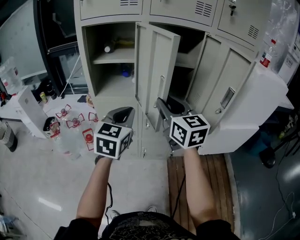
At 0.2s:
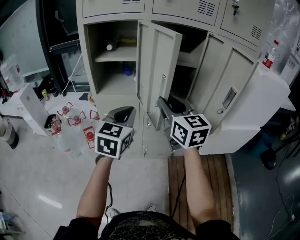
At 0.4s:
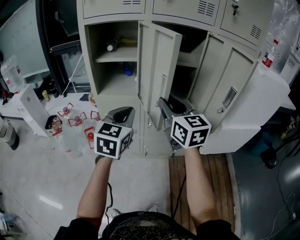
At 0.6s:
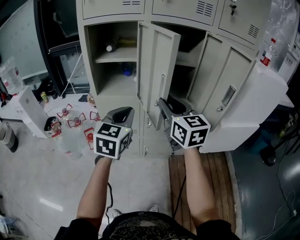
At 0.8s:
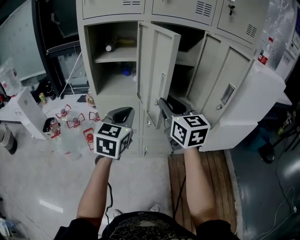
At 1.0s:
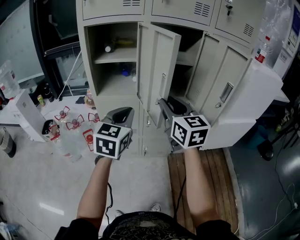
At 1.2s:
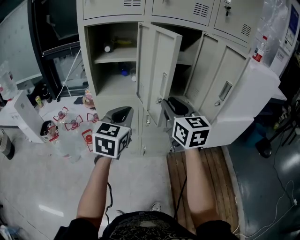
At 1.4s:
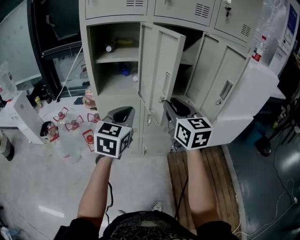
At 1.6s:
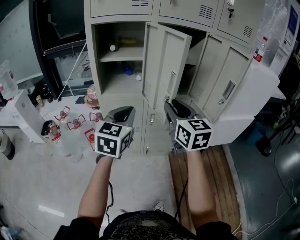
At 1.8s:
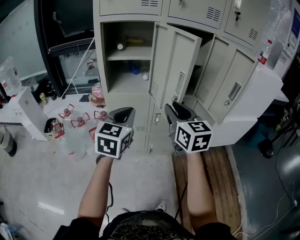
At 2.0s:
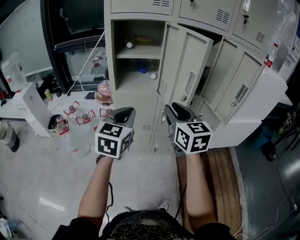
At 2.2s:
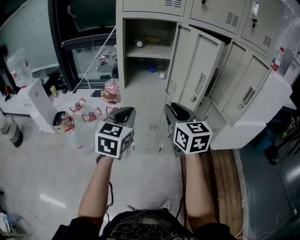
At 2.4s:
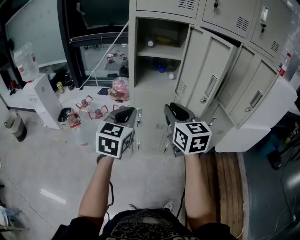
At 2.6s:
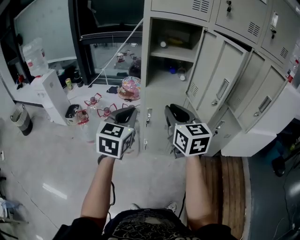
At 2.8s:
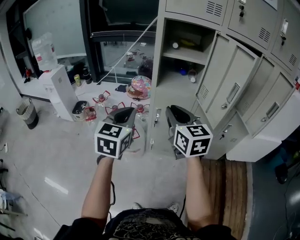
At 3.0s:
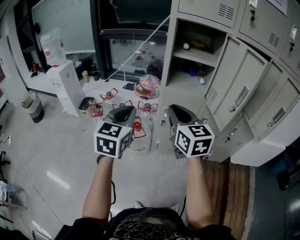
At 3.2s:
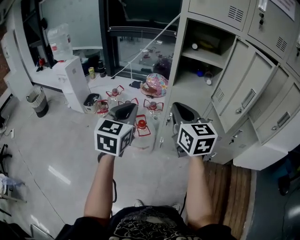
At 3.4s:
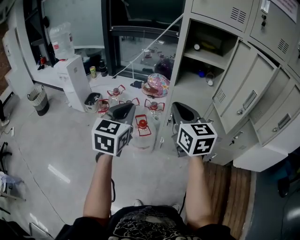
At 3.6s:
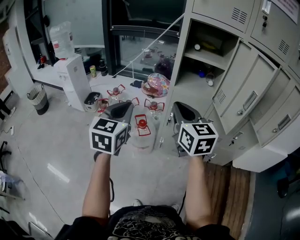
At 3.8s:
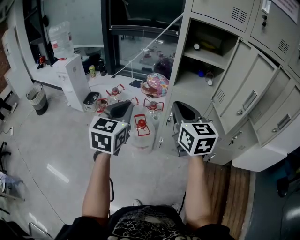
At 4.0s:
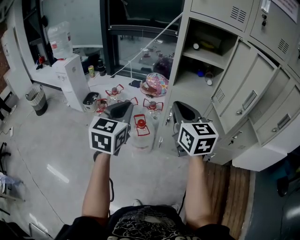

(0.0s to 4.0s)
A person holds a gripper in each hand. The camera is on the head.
0.0s - 1.4s: The grippers stay close to where they were, moving slightly.
1.4s - 2.6s: Both grippers travel together to the left, approximately 20 cm.
2.6s - 4.0s: Both grippers travel together to the left, about 10 cm.

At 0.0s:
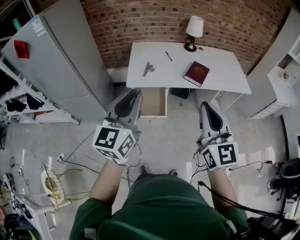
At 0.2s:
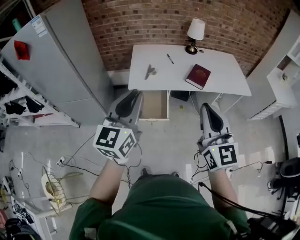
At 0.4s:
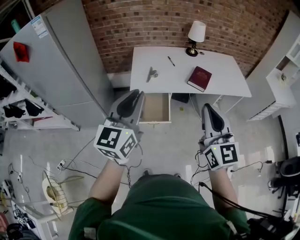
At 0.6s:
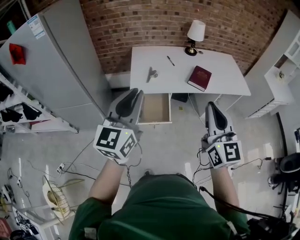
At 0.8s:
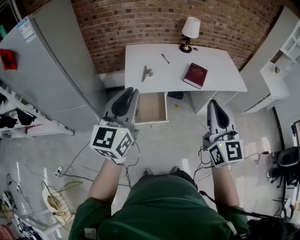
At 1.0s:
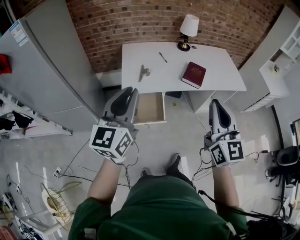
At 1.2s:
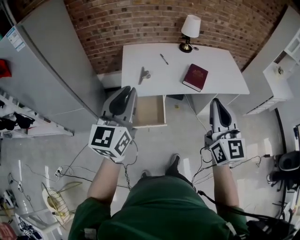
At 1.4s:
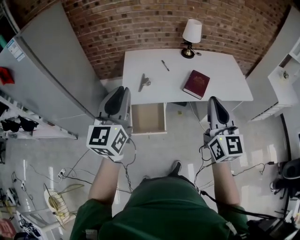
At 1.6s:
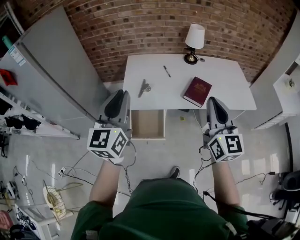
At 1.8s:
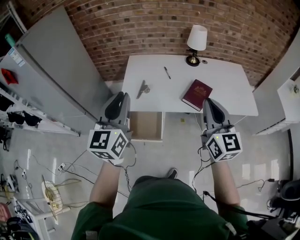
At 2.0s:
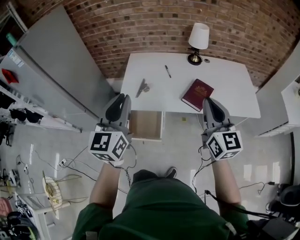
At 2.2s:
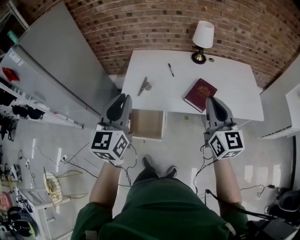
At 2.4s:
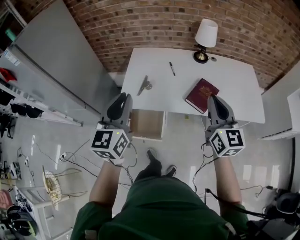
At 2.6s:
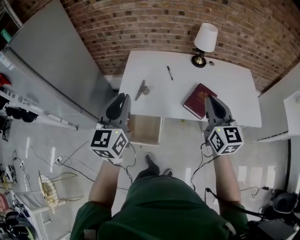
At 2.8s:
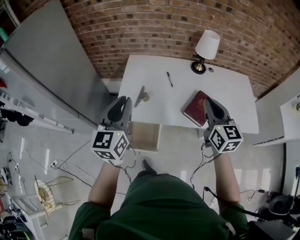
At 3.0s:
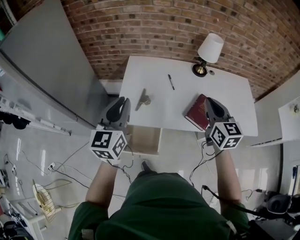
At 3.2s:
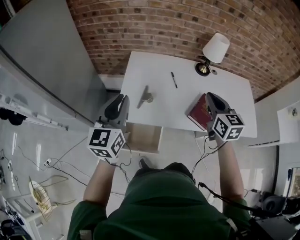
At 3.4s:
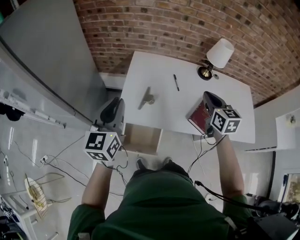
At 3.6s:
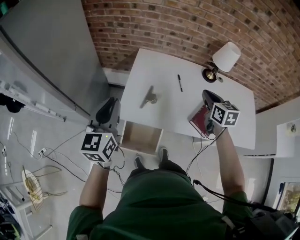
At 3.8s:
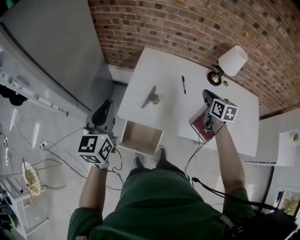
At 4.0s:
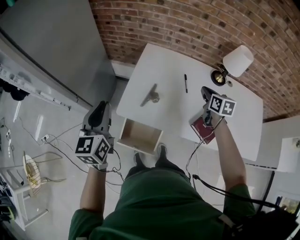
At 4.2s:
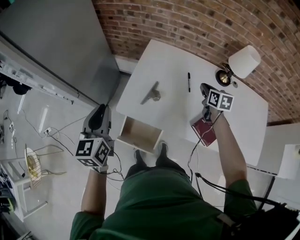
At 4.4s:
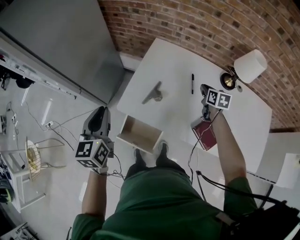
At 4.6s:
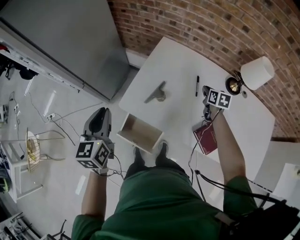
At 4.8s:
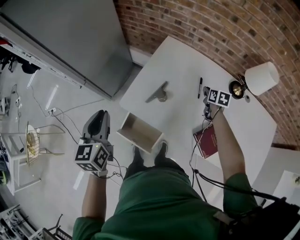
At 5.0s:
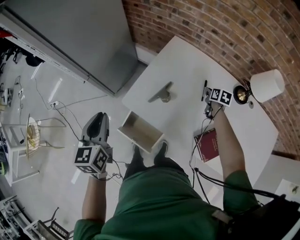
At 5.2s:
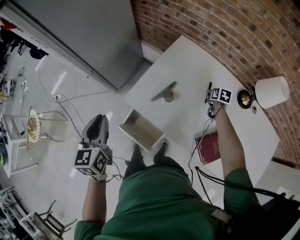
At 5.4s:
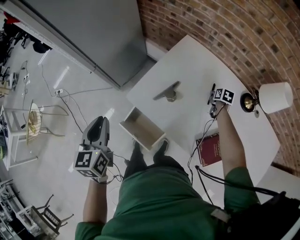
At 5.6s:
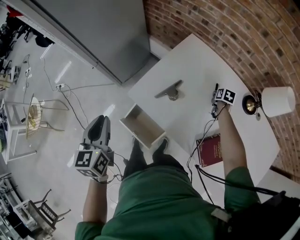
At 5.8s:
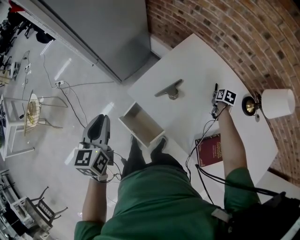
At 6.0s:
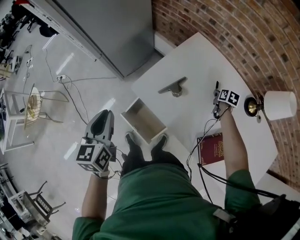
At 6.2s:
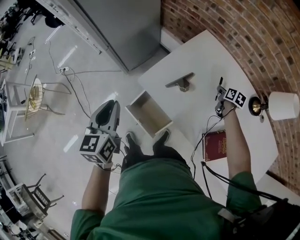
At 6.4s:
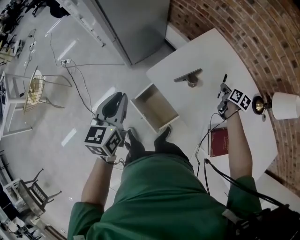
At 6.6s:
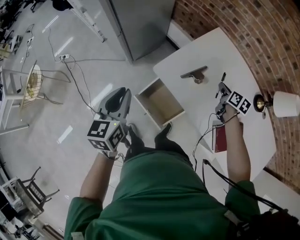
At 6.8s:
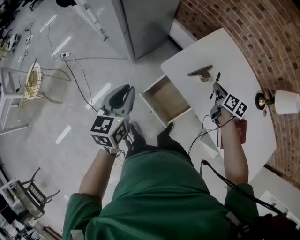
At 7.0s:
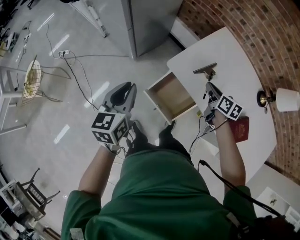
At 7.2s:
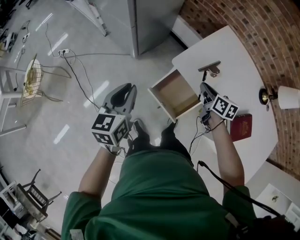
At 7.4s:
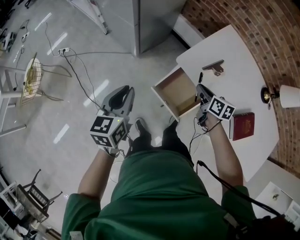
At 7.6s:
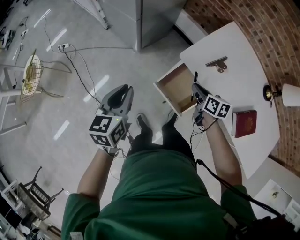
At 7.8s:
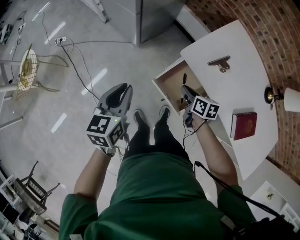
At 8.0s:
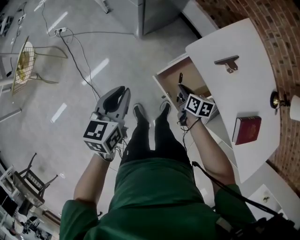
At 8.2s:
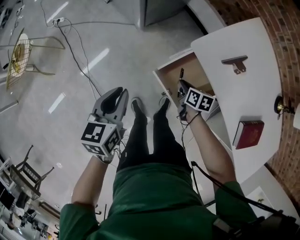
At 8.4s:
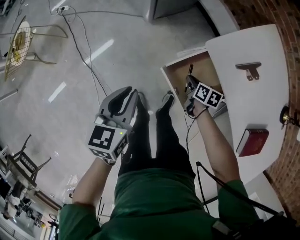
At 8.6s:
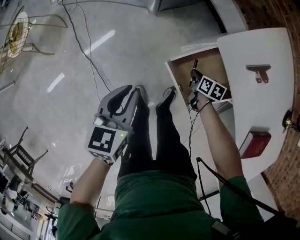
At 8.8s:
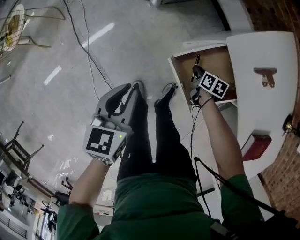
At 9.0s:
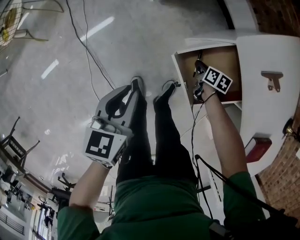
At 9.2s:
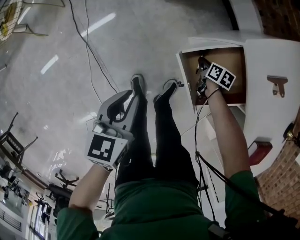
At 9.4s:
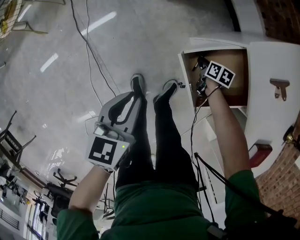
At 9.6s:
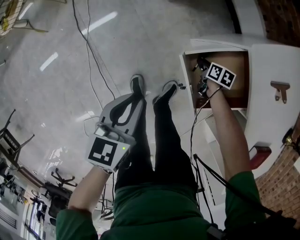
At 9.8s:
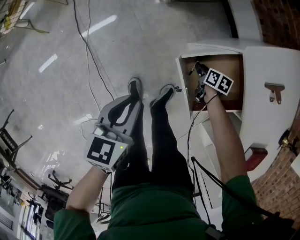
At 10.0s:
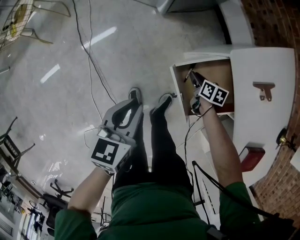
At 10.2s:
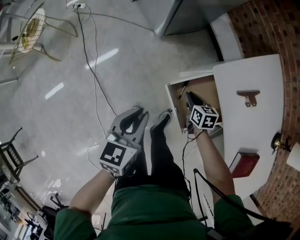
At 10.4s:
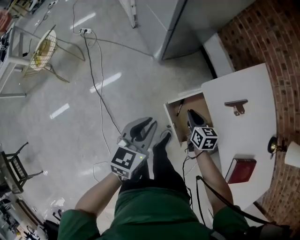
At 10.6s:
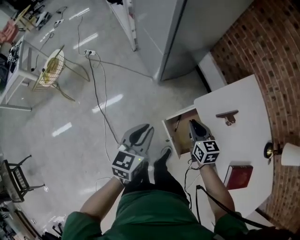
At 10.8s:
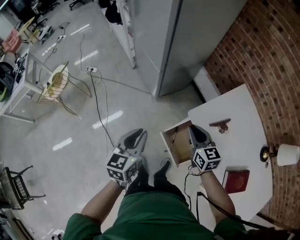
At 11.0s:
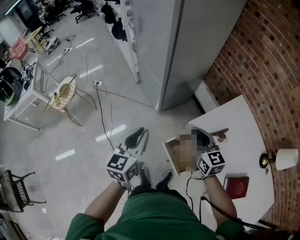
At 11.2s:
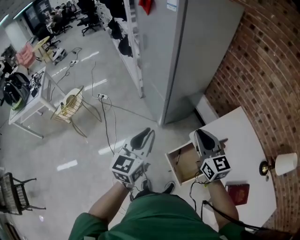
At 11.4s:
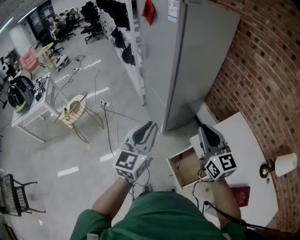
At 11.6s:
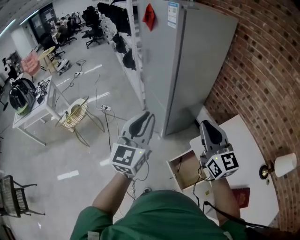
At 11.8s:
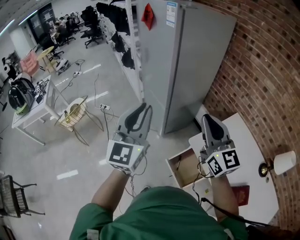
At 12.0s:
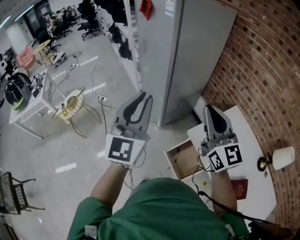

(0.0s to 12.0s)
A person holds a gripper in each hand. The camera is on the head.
0.0s - 1.6s: Both grippers travel together forward, roughly 20 cm.
1.6s - 3.0s: The left gripper is displaced forward and downward by approximately 20 cm; the right gripper moves forward, some 25 cm, and changes its angle by about 20 degrees.
3.0s - 4.4s: The right gripper travels forward and downward by roughly 35 cm, and rotates about 30 degrees. Meanwhile the left gripper goes about 15 cm downward and to the left, and turns by some 30 degrees.
4.4s - 6.0s: The right gripper heads downward and forward, covering some 15 cm; the left gripper shifts approximately 5 cm backward, and rotates about 20 degrees.
6.0s - 7.6s: The left gripper travels to the left by about 20 cm, while the right gripper moves to the left, approximately 50 cm, and rotates approximately 20 degrees.
7.6s - 9.0s: The left gripper travels downward by roughly 20 cm, while the right gripper heads downward, covering approximately 35 cm, and swivels about 20 degrees.
9.0s - 10.4s: The right gripper moves upward, approximately 25 cm, and swivels about 30 degrees, while the left gripper is displaced upward by approximately 15 cm.
10.4s - 12.0s: Both grippers travel together upward, roughly 50 cm. The right gripper points its fingers approximately 50 degrees further upward. The left gripper tips its fingers upward by roughly 40 degrees.

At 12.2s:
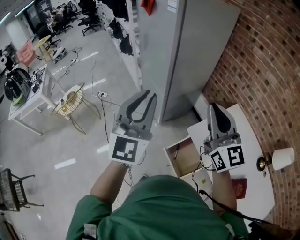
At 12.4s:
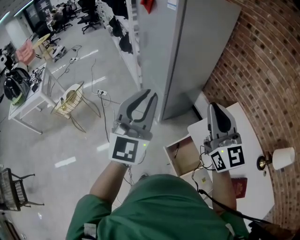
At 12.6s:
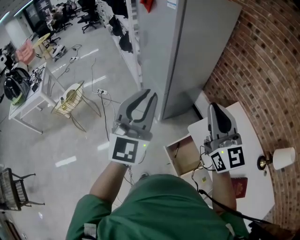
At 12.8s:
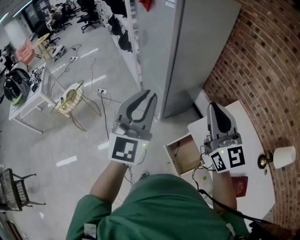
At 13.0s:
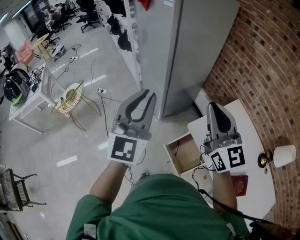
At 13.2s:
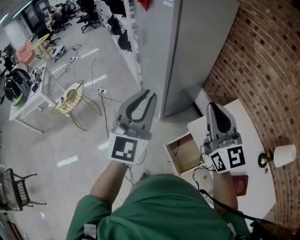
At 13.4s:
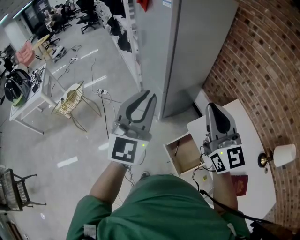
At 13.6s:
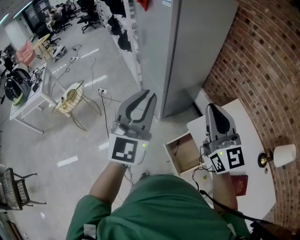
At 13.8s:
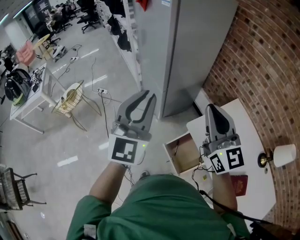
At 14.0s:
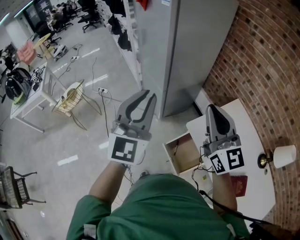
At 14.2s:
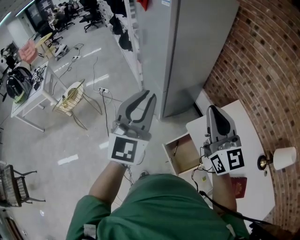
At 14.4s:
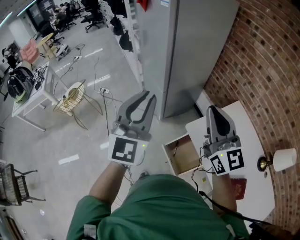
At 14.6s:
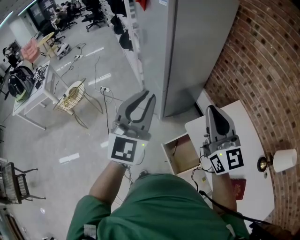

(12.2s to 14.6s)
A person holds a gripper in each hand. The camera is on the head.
12.2s - 14.6s: The grippers move only a little.

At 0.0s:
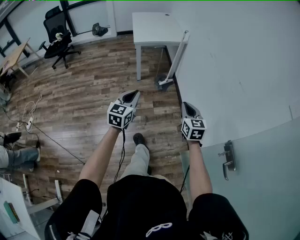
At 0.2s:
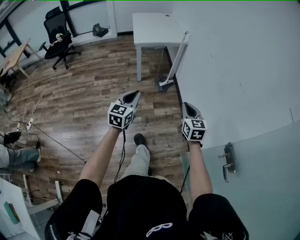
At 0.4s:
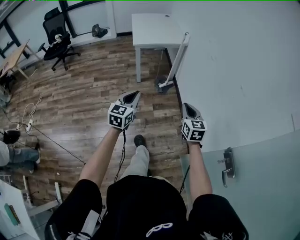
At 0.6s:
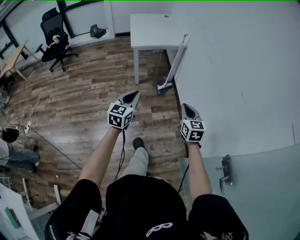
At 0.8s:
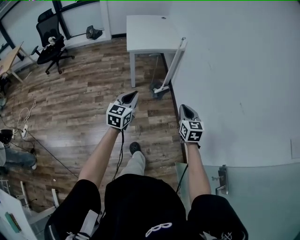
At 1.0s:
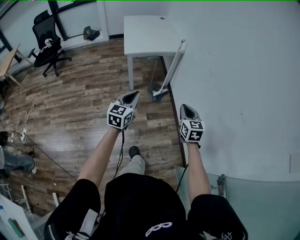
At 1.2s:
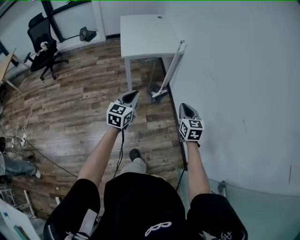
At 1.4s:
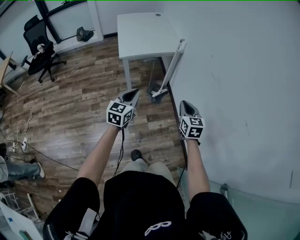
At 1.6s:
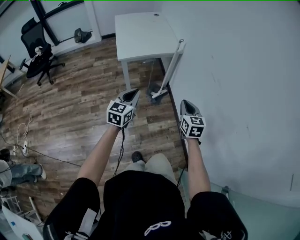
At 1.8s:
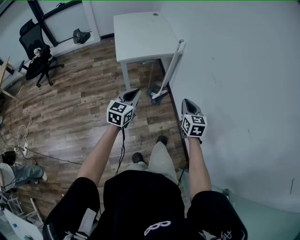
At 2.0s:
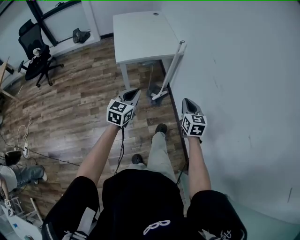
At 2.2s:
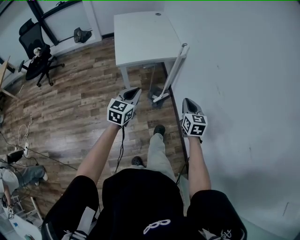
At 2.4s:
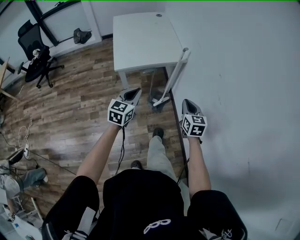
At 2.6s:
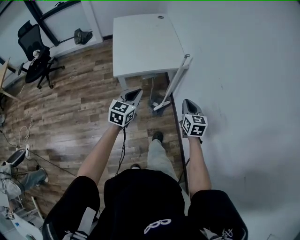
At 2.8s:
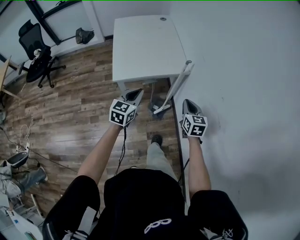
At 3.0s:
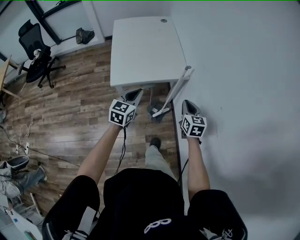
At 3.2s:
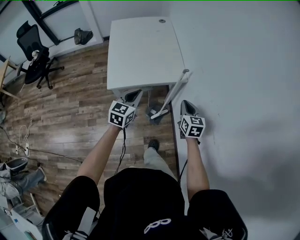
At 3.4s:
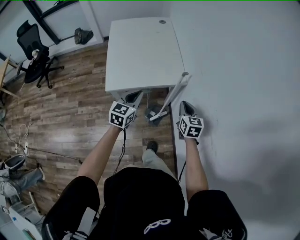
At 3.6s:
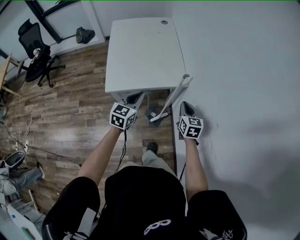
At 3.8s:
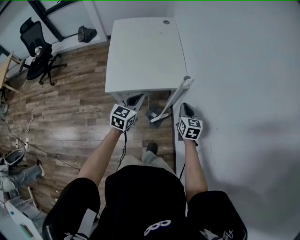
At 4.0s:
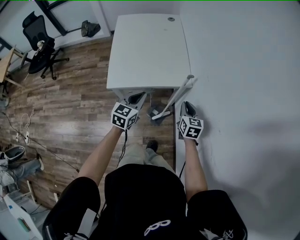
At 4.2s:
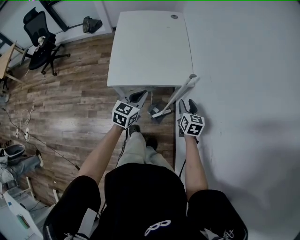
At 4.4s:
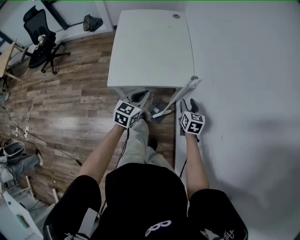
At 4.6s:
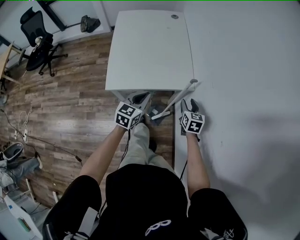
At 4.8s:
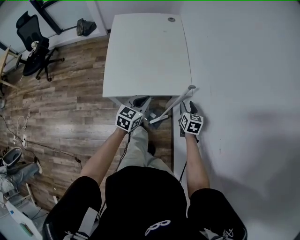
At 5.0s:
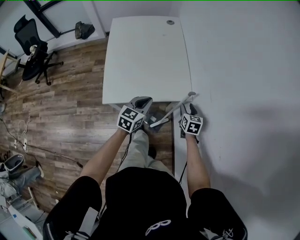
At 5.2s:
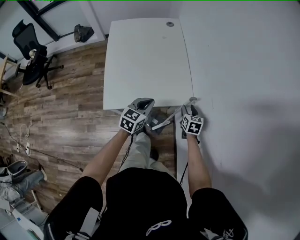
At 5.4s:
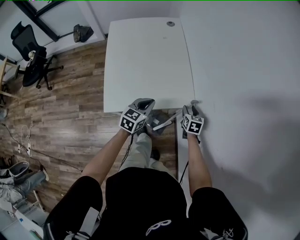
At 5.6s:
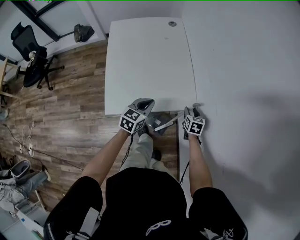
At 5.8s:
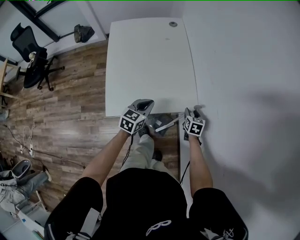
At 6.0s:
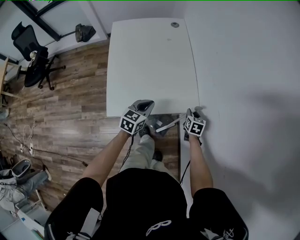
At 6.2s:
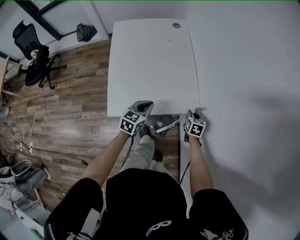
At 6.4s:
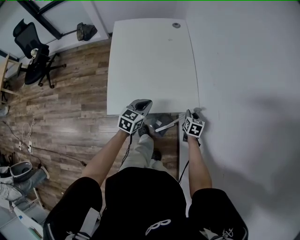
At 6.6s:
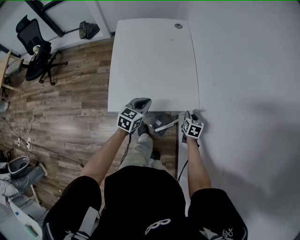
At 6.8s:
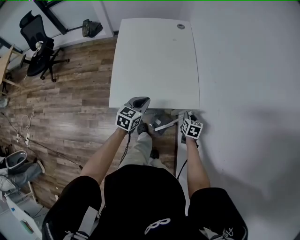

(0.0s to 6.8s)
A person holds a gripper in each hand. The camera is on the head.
0.0s - 1.4s: The two grippers go approximately 30 cm forward.
1.4s - 2.8s: Both grippers travel together forward, some 35 cm.
2.8s - 4.0s: The grippers both shift forward and downward by approximately 15 cm.
4.0s - 5.4s: The grippers both shift forward and downward by approximately 20 cm. The right gripper opens.
5.4s - 6.8s: The left gripper moves to the left, about 5 cm.
